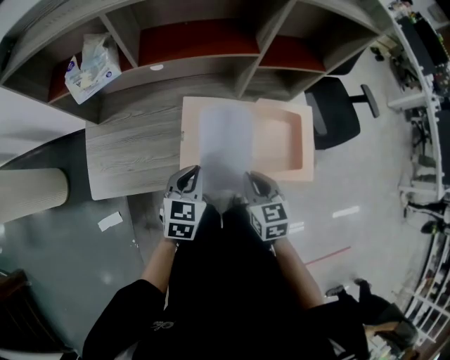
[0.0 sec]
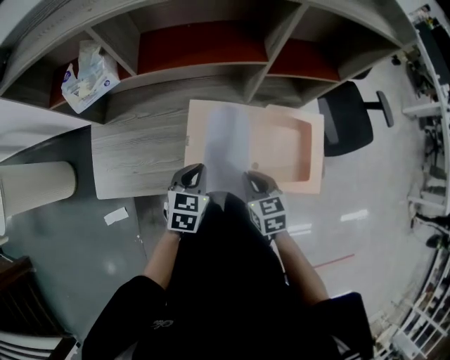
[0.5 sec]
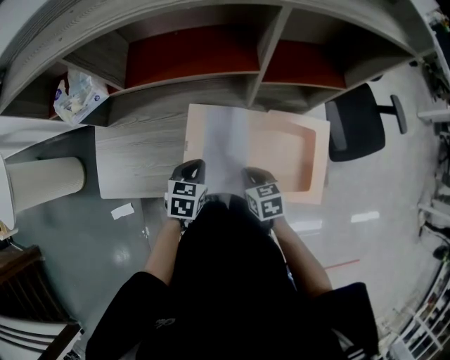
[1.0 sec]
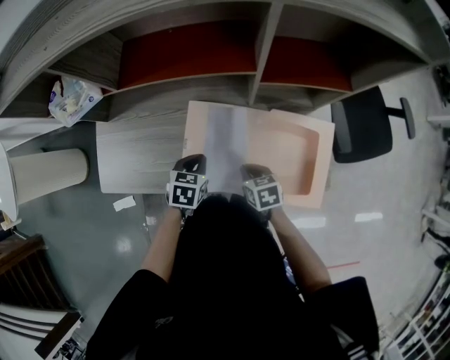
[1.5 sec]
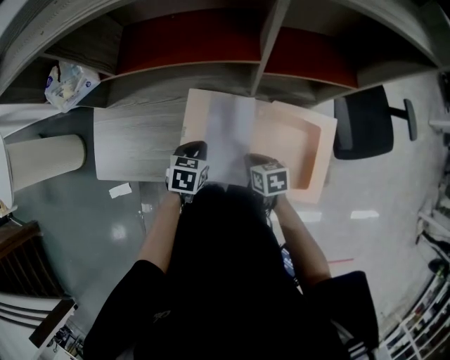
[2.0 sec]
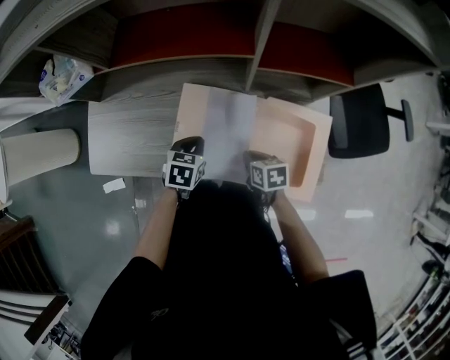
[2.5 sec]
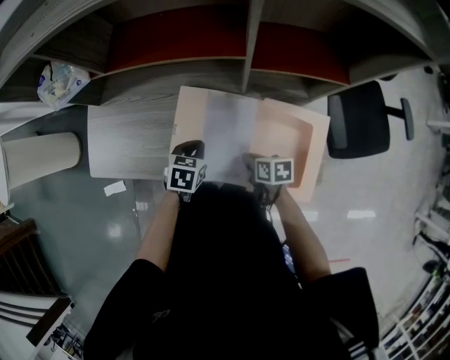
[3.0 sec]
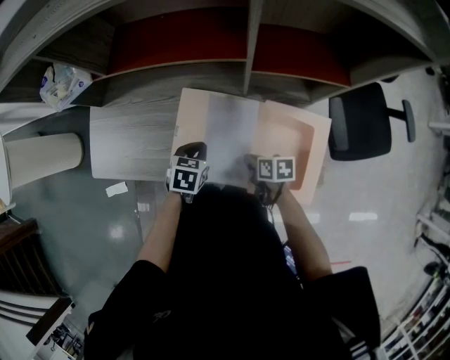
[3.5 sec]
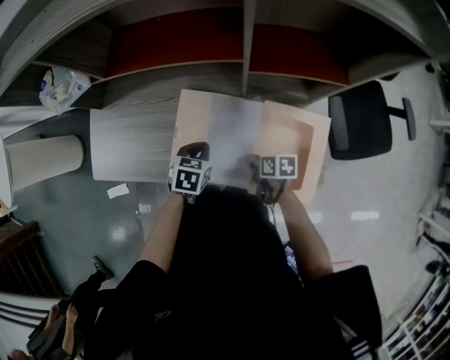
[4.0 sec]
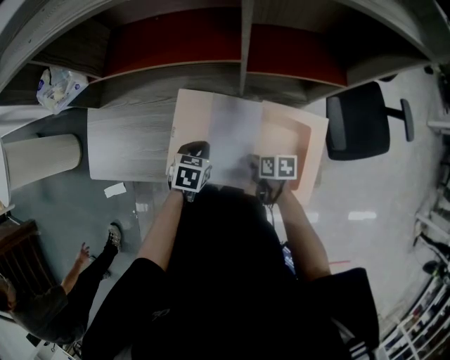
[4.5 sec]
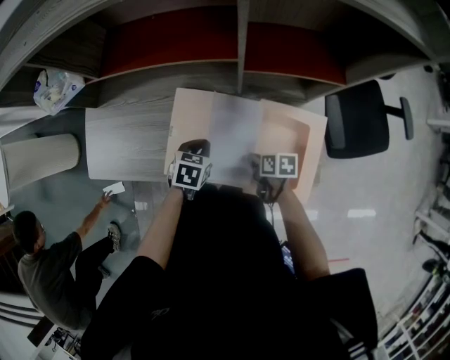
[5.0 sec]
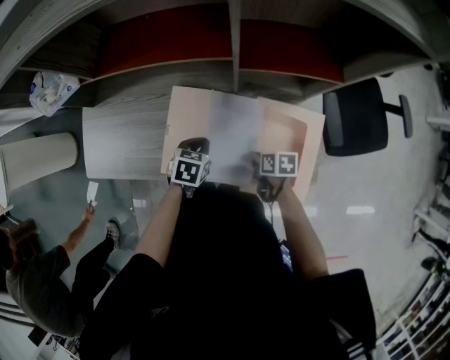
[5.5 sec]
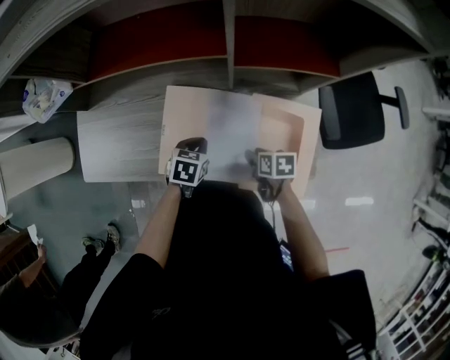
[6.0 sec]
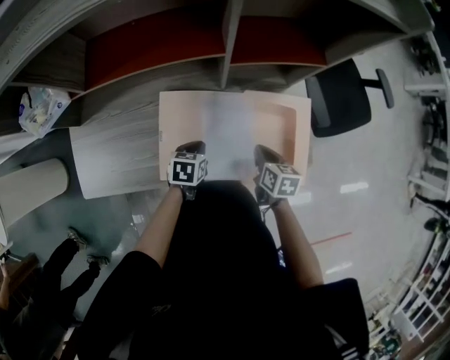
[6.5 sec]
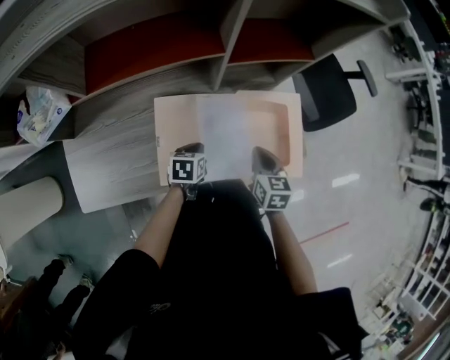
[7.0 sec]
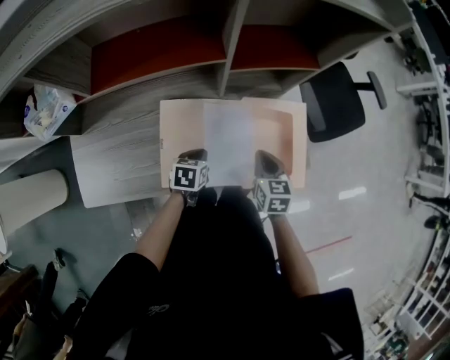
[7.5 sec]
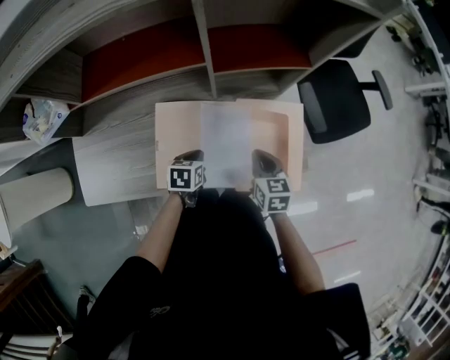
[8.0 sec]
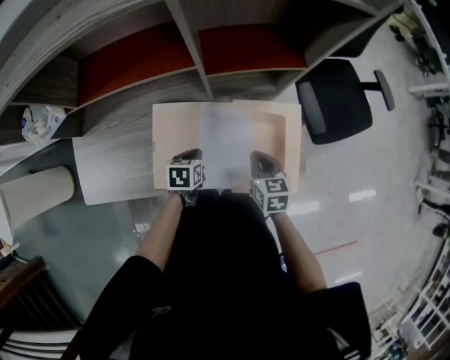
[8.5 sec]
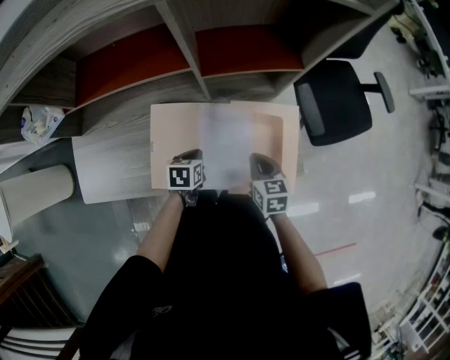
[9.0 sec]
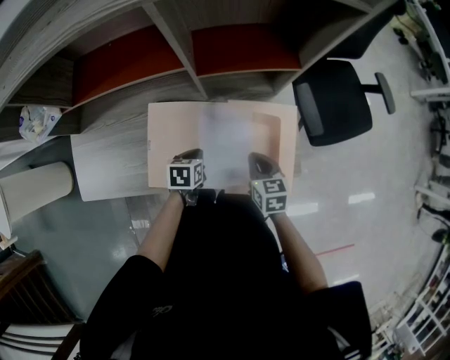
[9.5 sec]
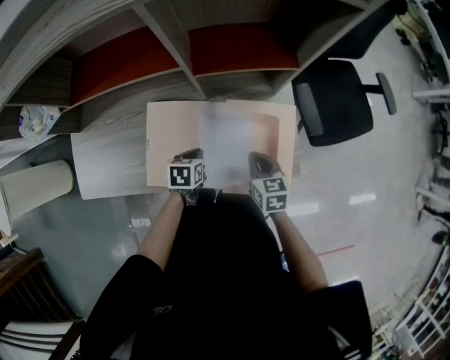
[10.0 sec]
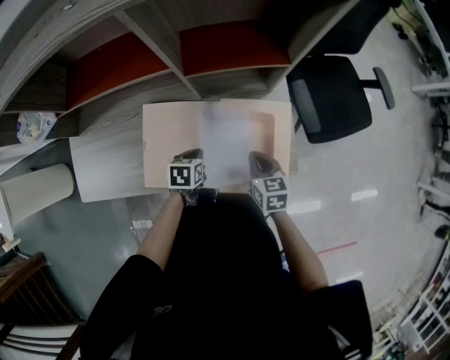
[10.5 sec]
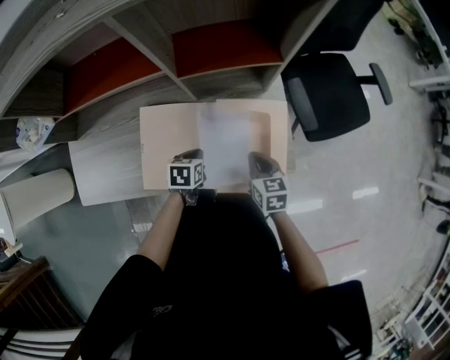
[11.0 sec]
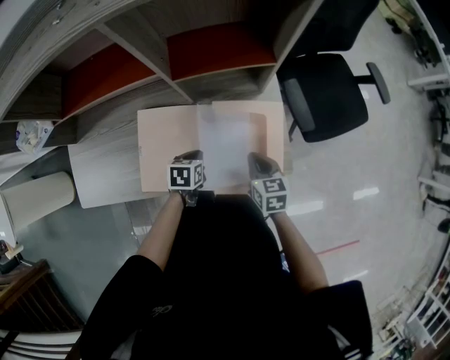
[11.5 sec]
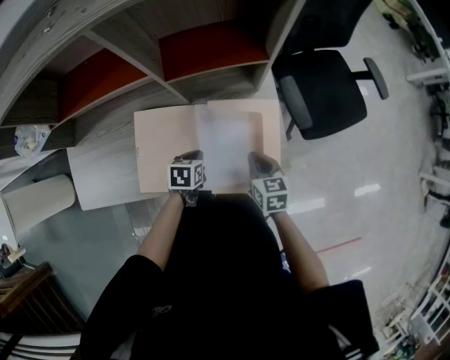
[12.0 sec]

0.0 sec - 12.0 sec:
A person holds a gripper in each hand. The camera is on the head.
0.0 sec - 2.0 sec: The grippers both shift downward and forward by some 15 cm. The right gripper turns by roughly 30 degrees. Meanwhile the left gripper turns by roughly 30 degrees.
2.0 sec - 4.0 sec: The right gripper moves about 5 cm, and rotates roughly 20 degrees.
4.0 sec - 6.0 sec: The right gripper opens its fingers.
6.0 sec - 8.0 sec: The right gripper heads upward, covering about 10 cm, swivels roughly 40 degrees, and closes its fingers.
8.0 sec - 10.0 sec: There are only small adjustments of the grippers.
10.0 sec - 12.0 sec: The grippers move only a little.

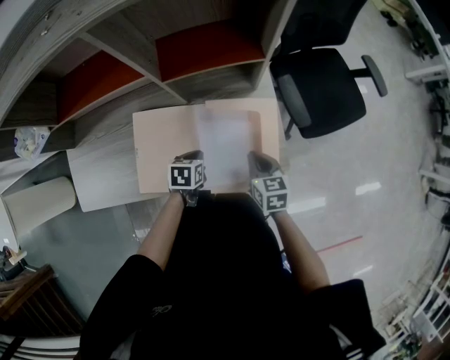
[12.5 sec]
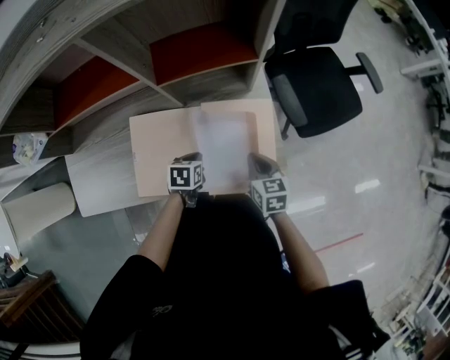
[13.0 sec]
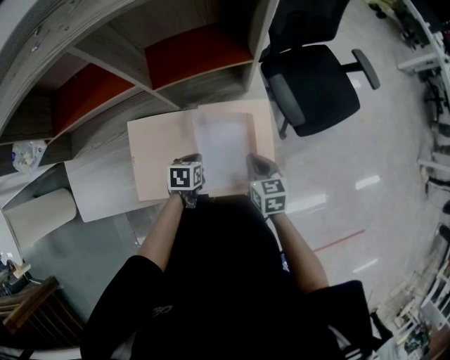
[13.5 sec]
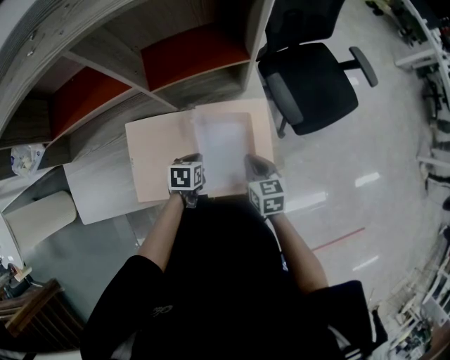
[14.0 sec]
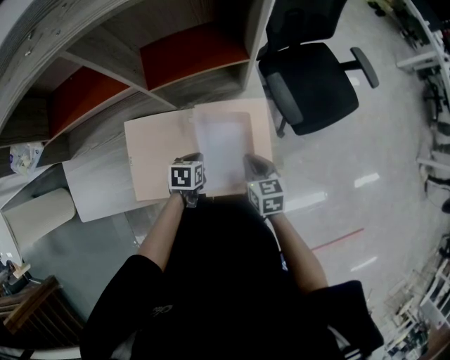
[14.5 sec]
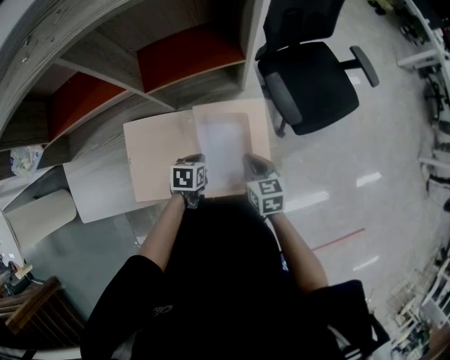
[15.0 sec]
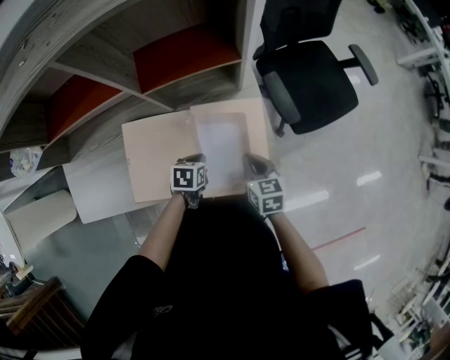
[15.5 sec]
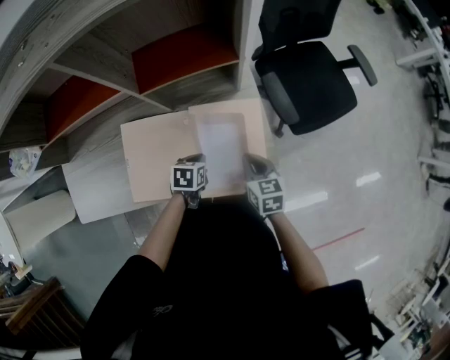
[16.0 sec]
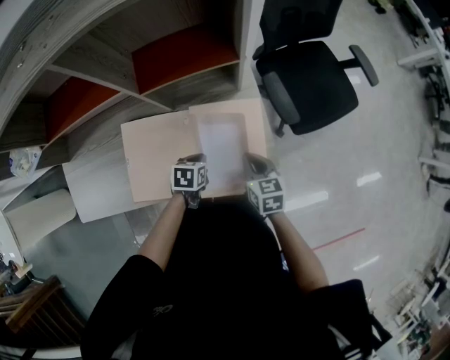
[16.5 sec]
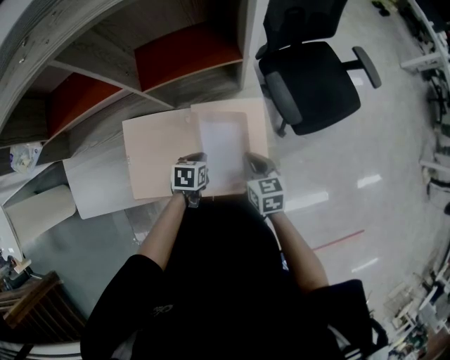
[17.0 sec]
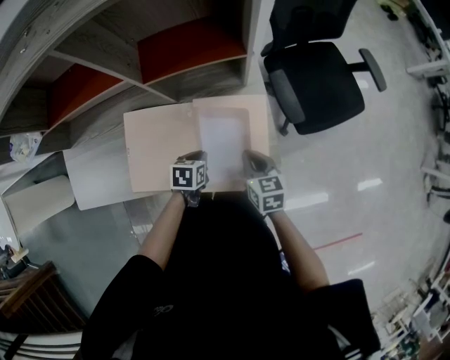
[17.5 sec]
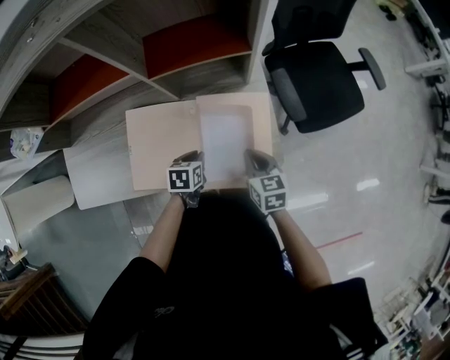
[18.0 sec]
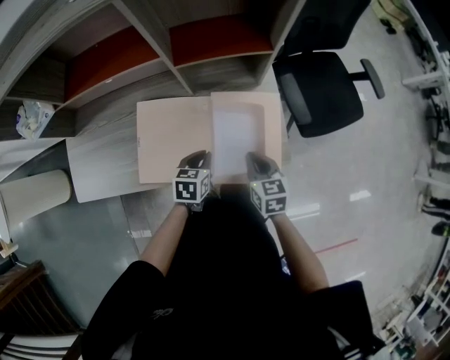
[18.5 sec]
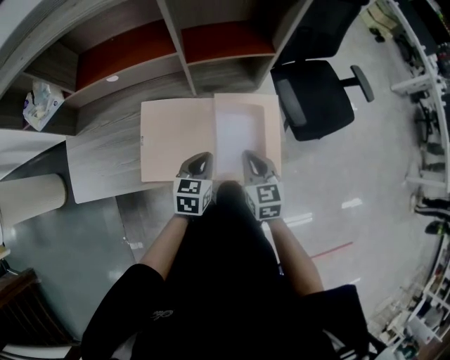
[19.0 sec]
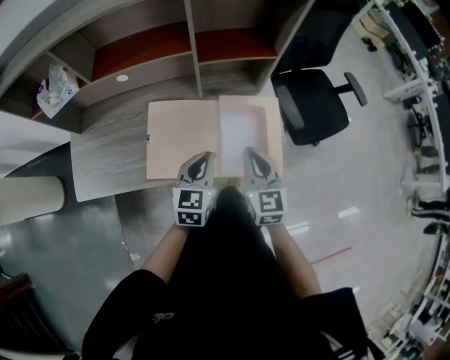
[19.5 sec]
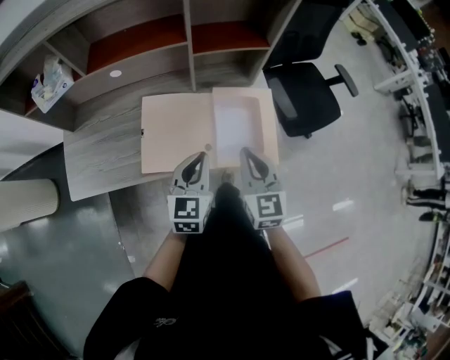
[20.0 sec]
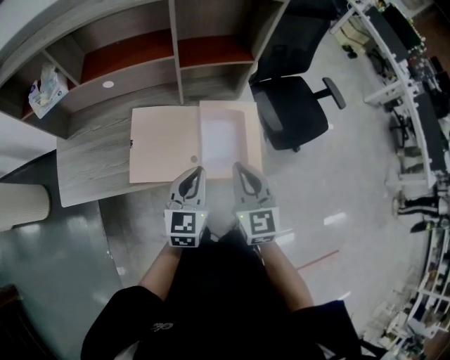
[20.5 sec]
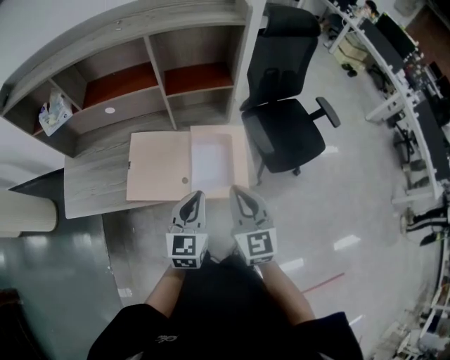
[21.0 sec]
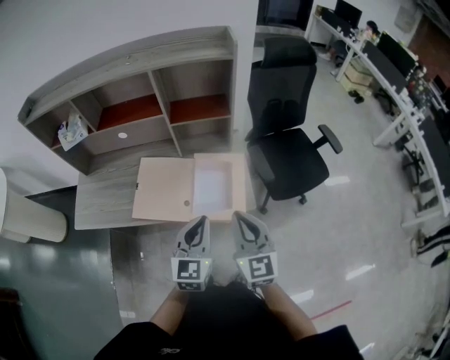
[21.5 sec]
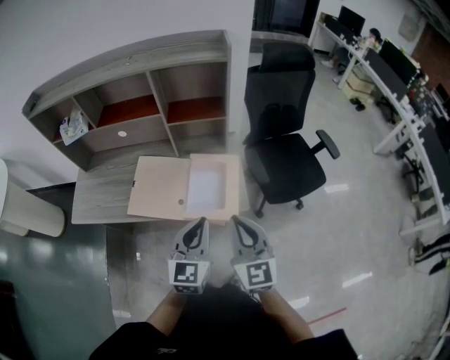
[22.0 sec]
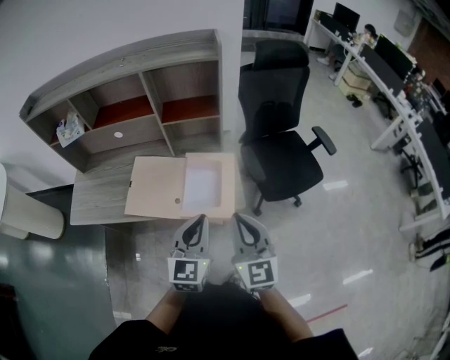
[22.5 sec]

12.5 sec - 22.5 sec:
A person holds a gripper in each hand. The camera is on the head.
12.5 sec - 16.5 sec: The grippers move only a little.
16.5 sec - 18.5 sec: The right gripper changes place by some 5 cm. Meanwhile the left gripper moves upward, some 5 cm.
18.5 sec - 20.5 sec: Both grippers travel together upward and backward, about 20 cm. The right gripper rotates about 30 degrees; the left gripper tilts its fingers about 30 degrees upward.
20.5 sec - 22.5 sec: The left gripper moves to the right, upward and backward, approximately 20 cm, while the right gripper travels to the right, backward and upward by about 20 cm.

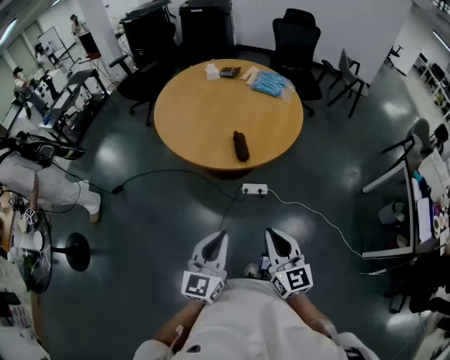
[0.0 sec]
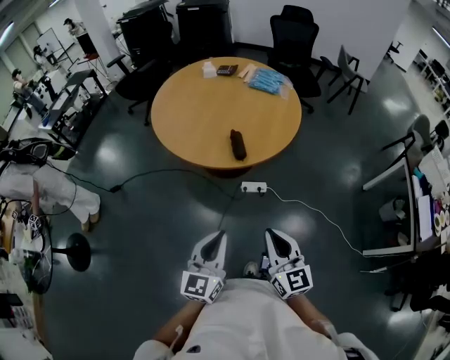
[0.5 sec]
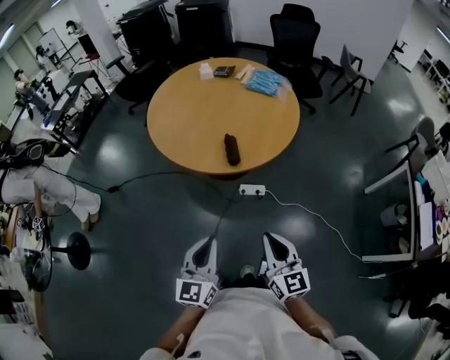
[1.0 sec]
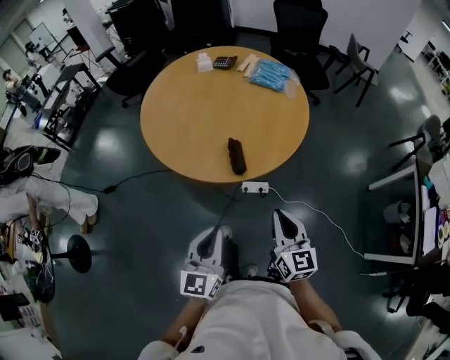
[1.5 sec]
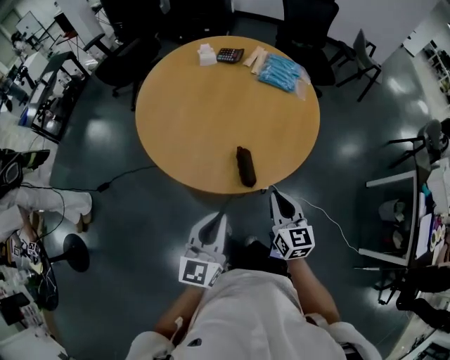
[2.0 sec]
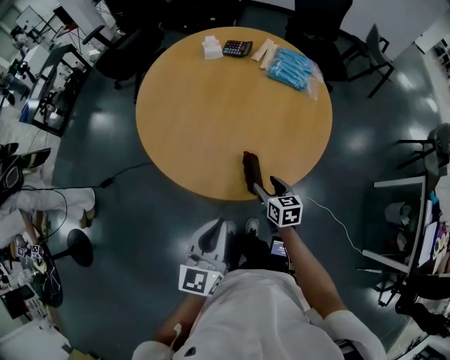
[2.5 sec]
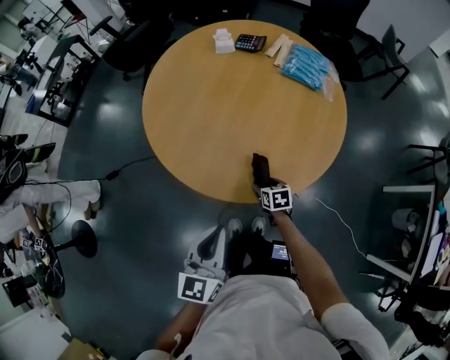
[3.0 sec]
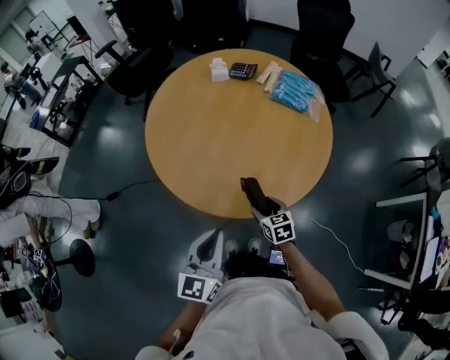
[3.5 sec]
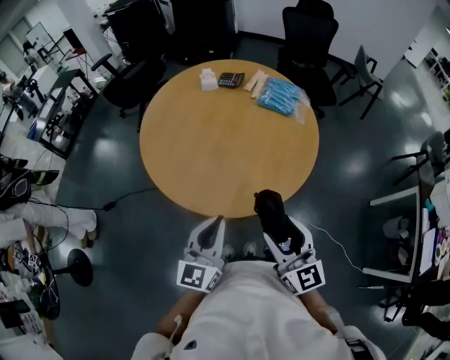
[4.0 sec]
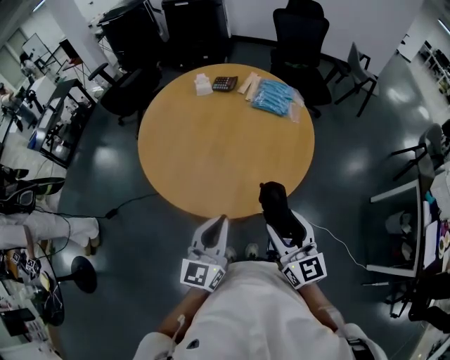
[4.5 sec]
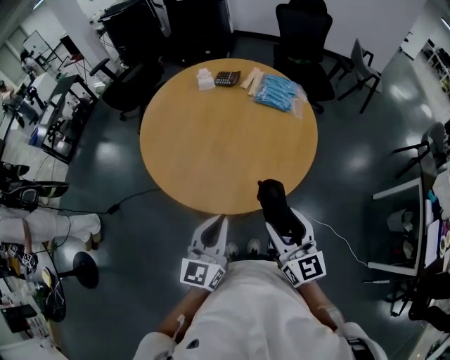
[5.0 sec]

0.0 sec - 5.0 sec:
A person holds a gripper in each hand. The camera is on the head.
0.0 sec - 2.5 sec: The left gripper travels forward by about 30 cm. Meanwhile the right gripper moves forward and downward, some 50 cm, tilts its fingers some 30 degrees downward, and opens up.
2.5 sec - 5.0 sec: The left gripper shifts by roughly 5 cm; the right gripper goes roughly 25 cm upward and backward, and tilts its fingers approximately 30 degrees upward.
